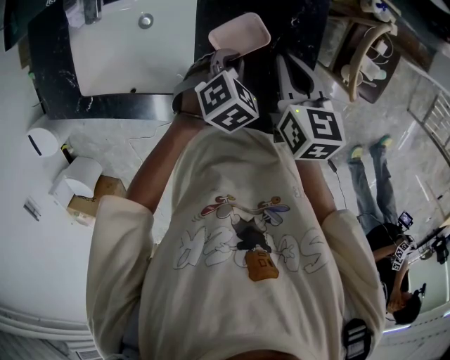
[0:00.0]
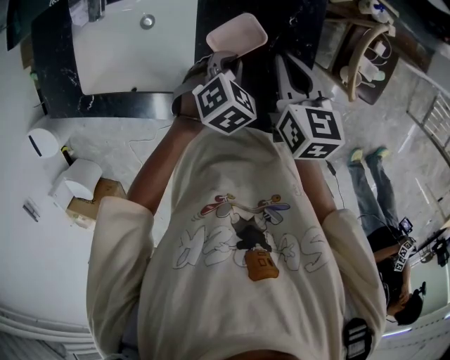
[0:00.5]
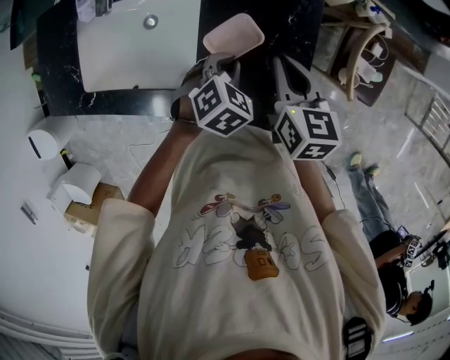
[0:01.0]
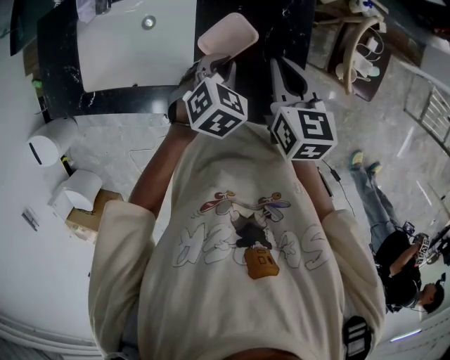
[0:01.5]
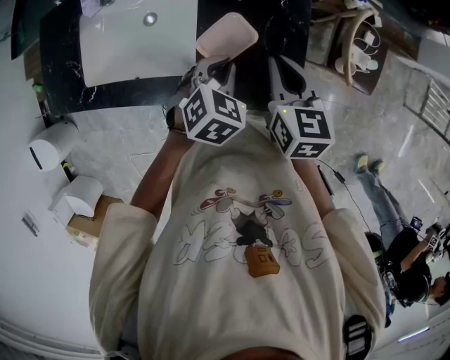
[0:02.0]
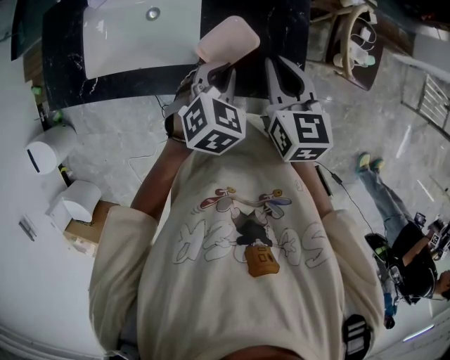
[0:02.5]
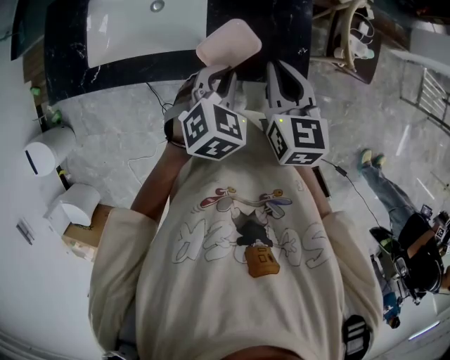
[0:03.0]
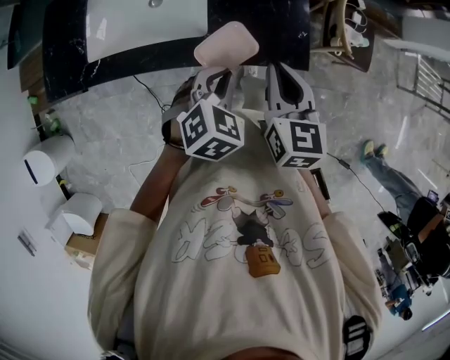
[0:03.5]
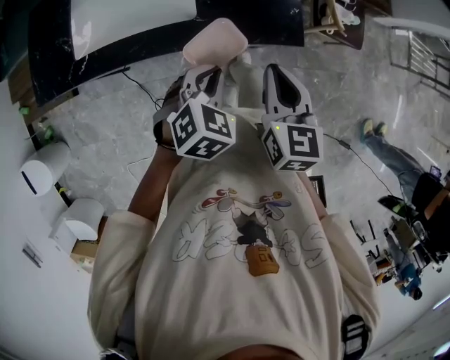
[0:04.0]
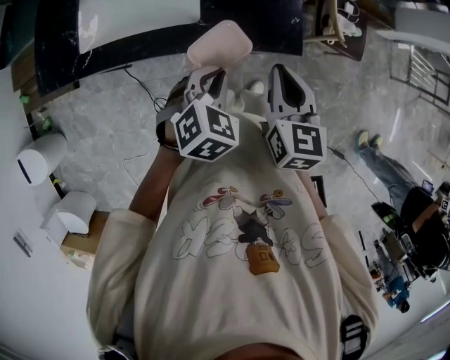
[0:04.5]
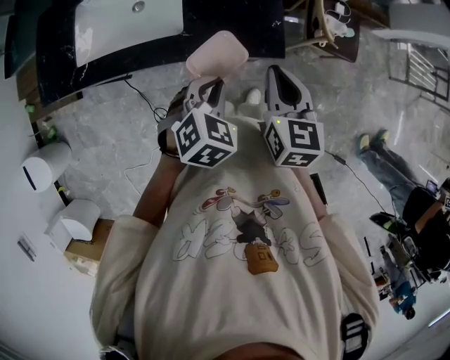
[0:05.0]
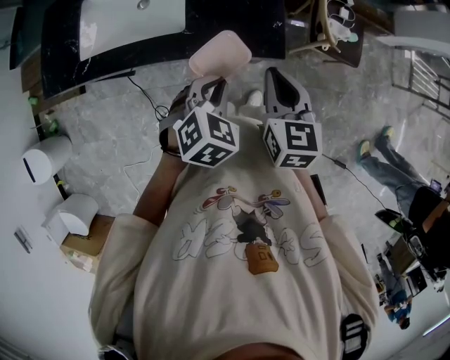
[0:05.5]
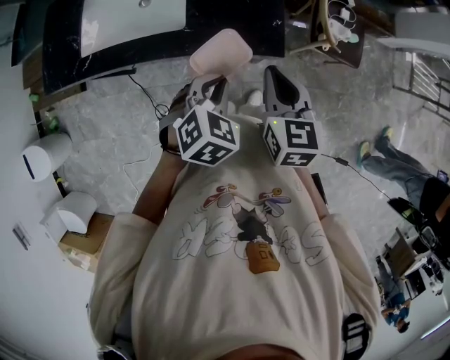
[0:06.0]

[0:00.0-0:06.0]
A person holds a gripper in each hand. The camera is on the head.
0:00.0 to 0:02.0: The right gripper shifts about 10 cm backward and upward; the left gripper heads upward and backward, covering roughly 10 cm.
0:02.0 to 0:04.0: The two grippers go some 25 cm backward.
0:04.0 to 0:06.0: Both grippers travel together to the right, about 10 cm.

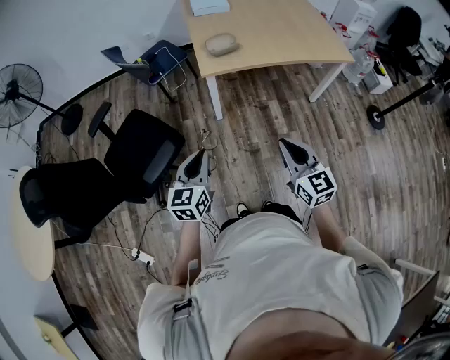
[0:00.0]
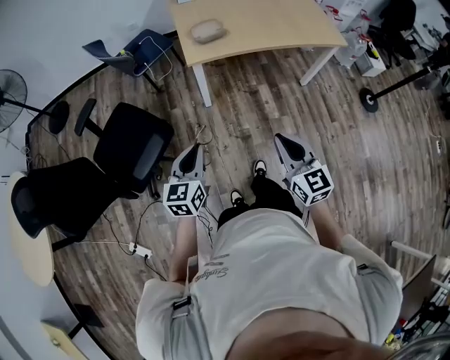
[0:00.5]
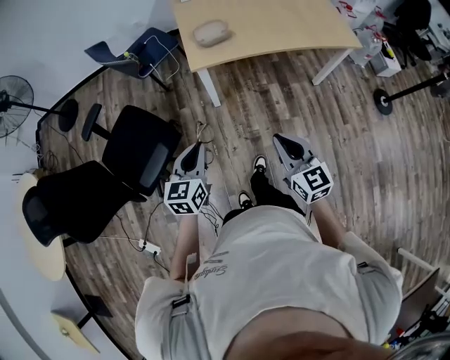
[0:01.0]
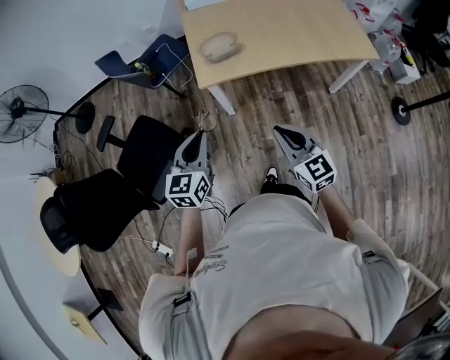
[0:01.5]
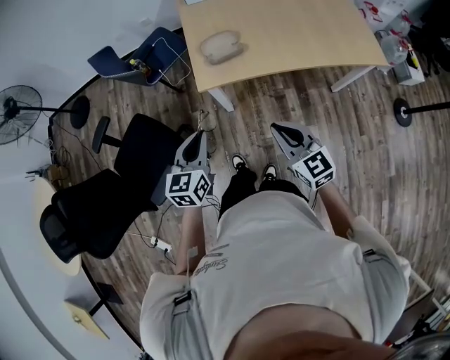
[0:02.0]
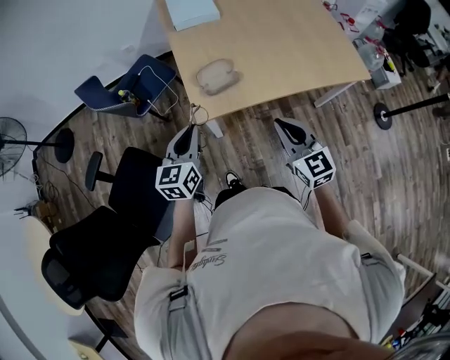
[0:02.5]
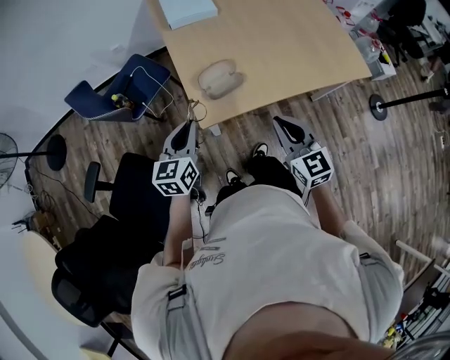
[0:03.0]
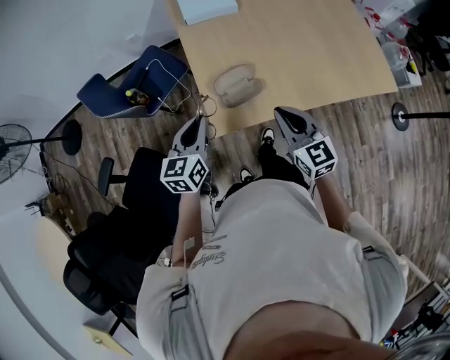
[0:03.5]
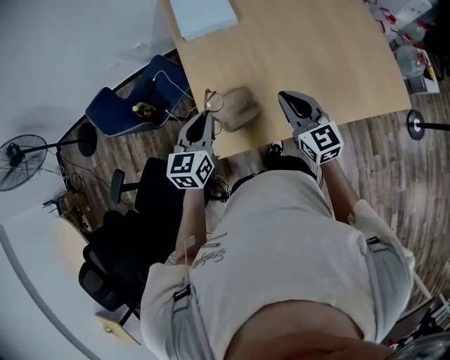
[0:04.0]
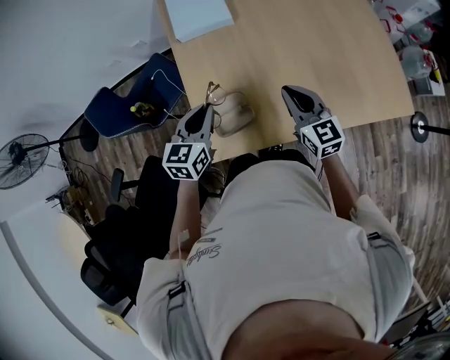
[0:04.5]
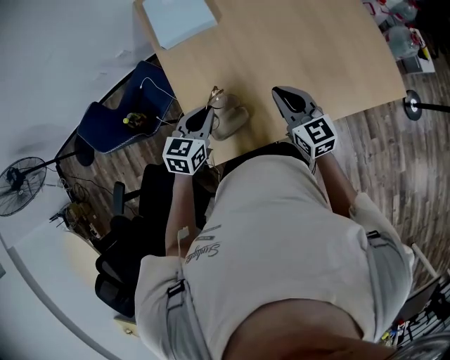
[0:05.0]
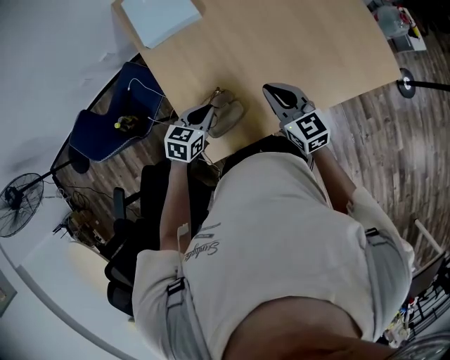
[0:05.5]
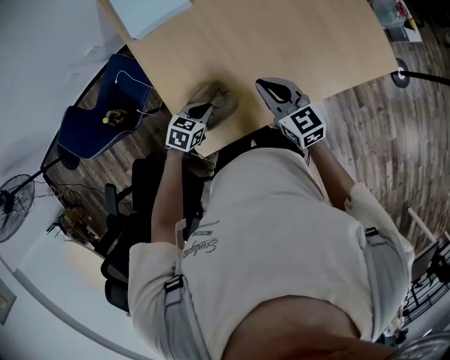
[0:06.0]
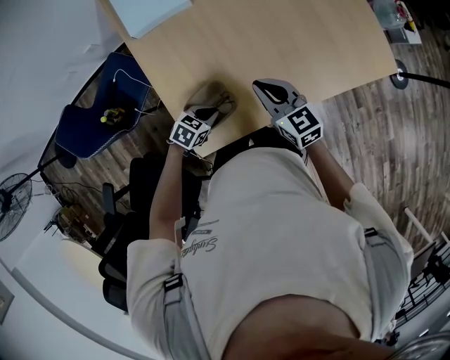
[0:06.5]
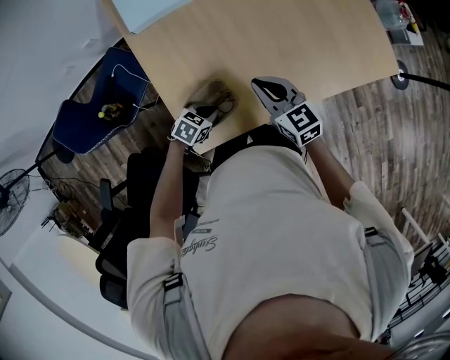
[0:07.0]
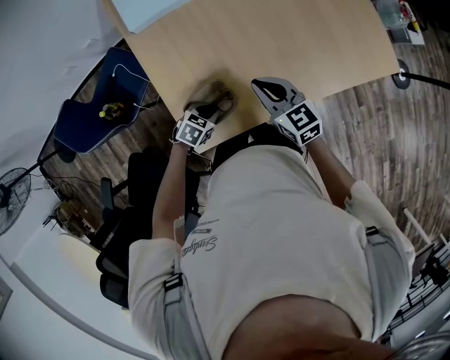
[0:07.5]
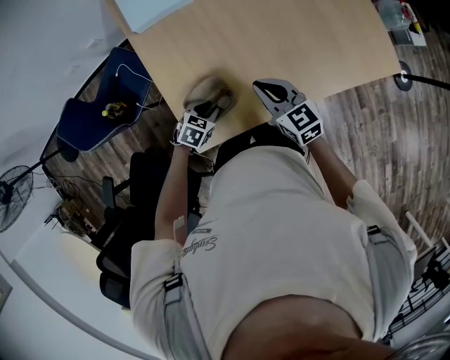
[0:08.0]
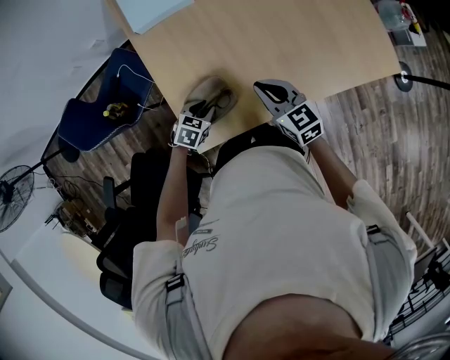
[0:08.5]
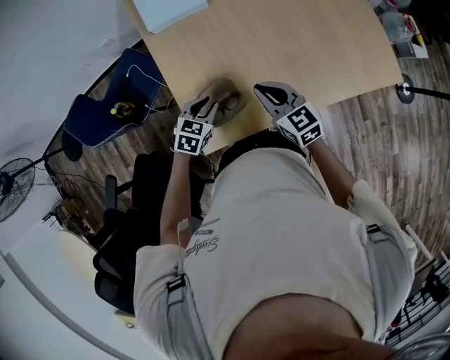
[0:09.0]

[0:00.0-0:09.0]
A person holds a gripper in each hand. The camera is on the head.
0:00.0 to 0:02.0: Both grippers move forward, some 25 cm.
0:02.0 to 0:04.5: The pair of grippers is taken forward, about 40 cm.
0:04.5 to 0:07.0: The right gripper goes some 5 cm downward, while the left gripper heads downward, covering roughly 25 cm, and angles its fingers downward, by about 30 degrees.
0:07.0 to 0:09.0: The left gripper is displaced upward by roughly 10 cm, and changes its angle by some 20 degrees.

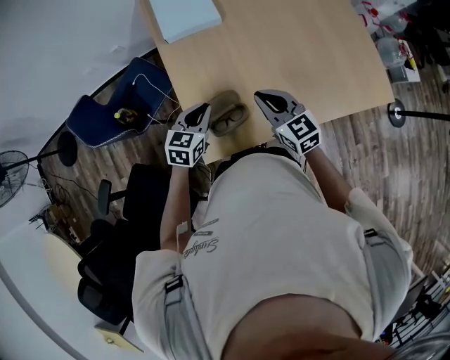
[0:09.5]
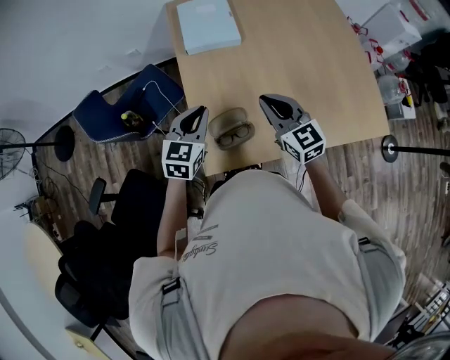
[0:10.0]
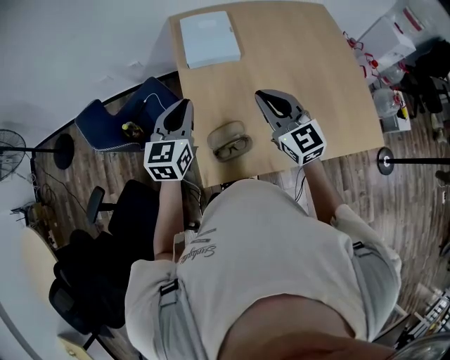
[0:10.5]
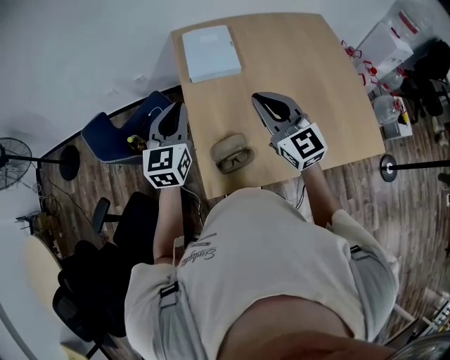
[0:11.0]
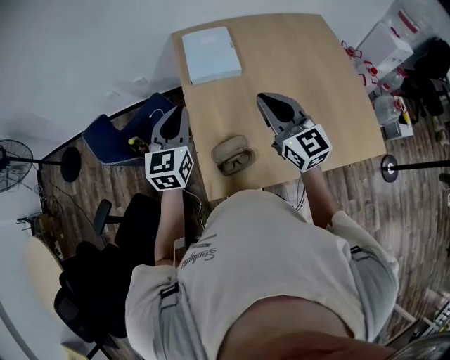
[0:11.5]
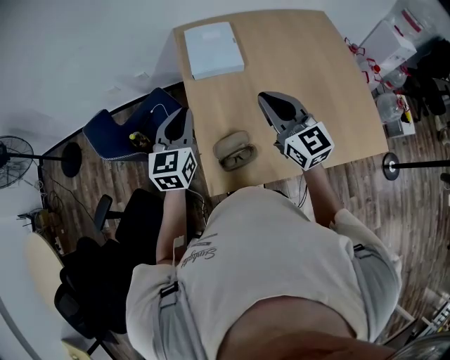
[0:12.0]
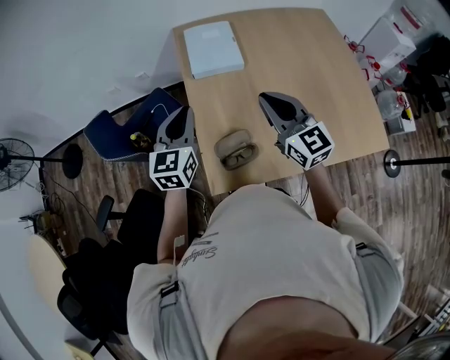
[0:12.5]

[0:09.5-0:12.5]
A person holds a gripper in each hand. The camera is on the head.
0:09.5 to 0:11.0: The grippers both shift upward by about 20 cm. The left gripper swivels about 30 degrees; the right gripper turns by roughly 20 degrees.
0:11.0 to 0:12.5: The grippers stay close to where they were, moving slightly.

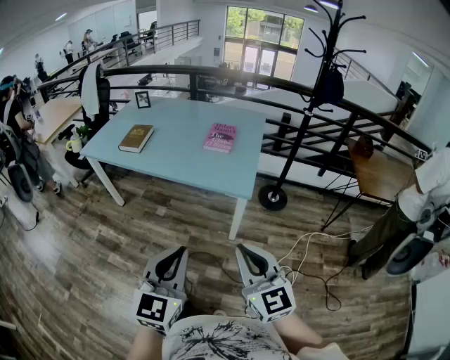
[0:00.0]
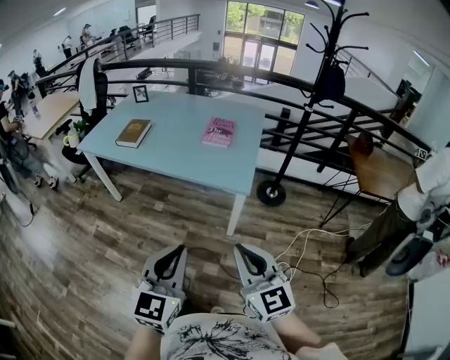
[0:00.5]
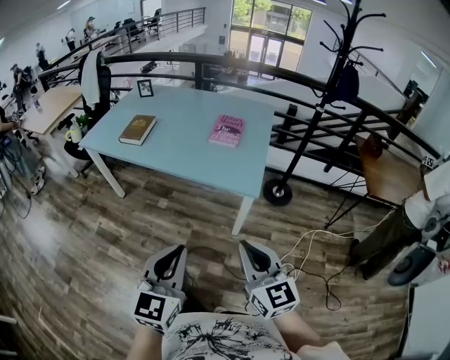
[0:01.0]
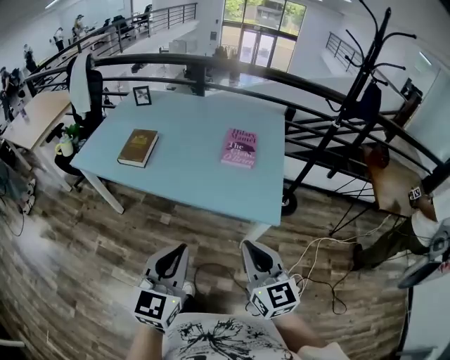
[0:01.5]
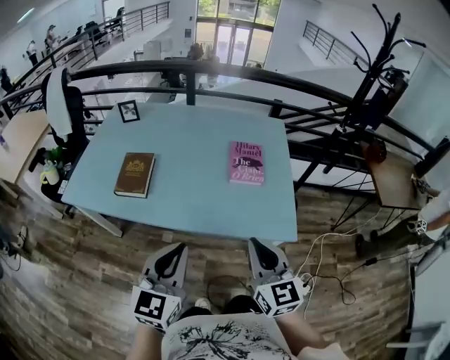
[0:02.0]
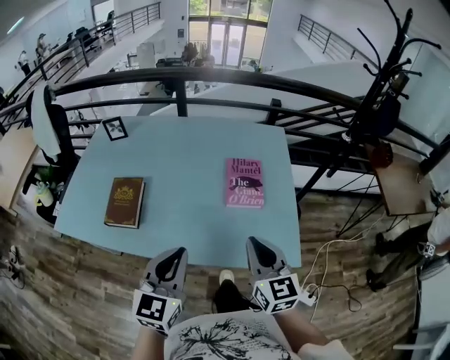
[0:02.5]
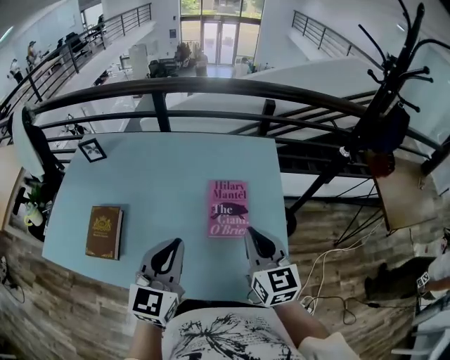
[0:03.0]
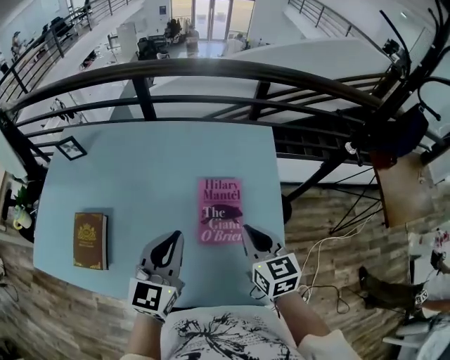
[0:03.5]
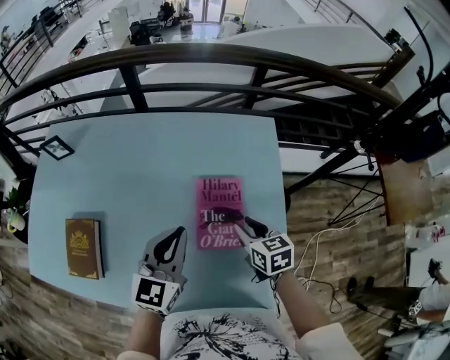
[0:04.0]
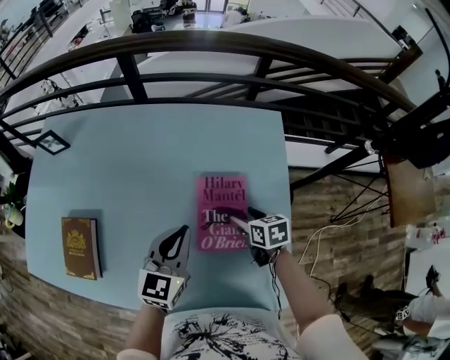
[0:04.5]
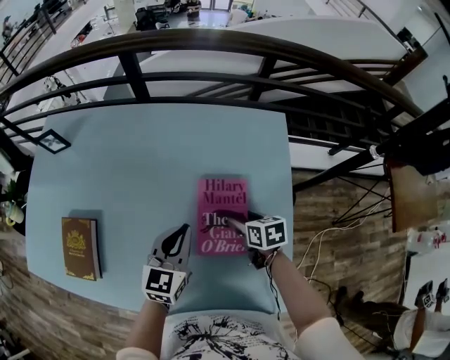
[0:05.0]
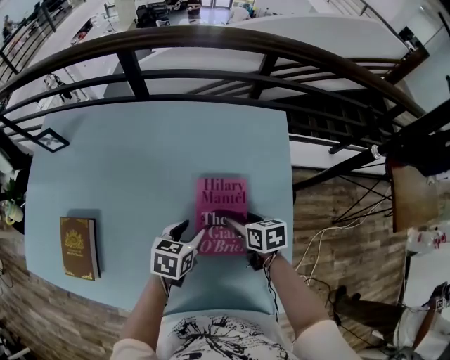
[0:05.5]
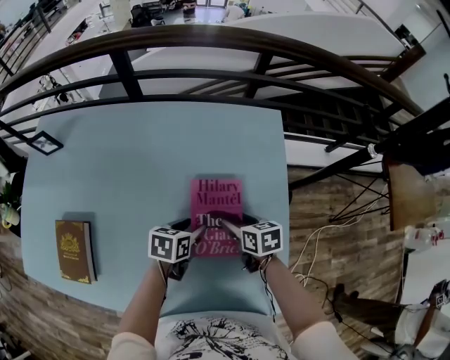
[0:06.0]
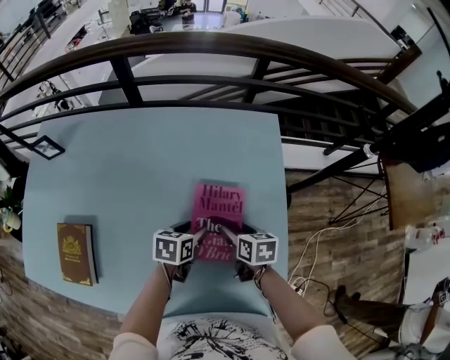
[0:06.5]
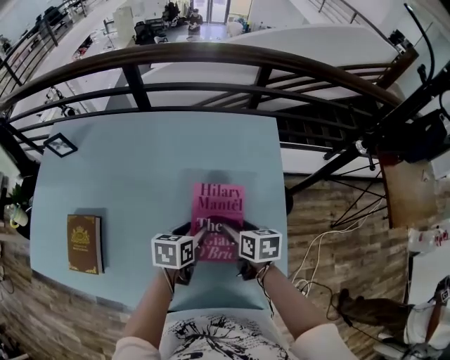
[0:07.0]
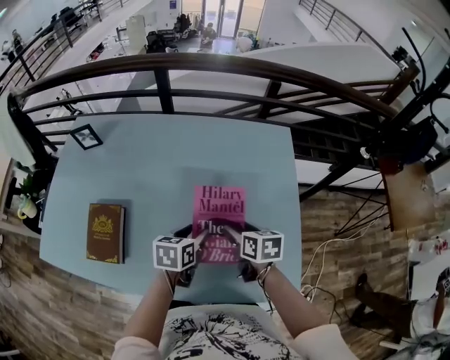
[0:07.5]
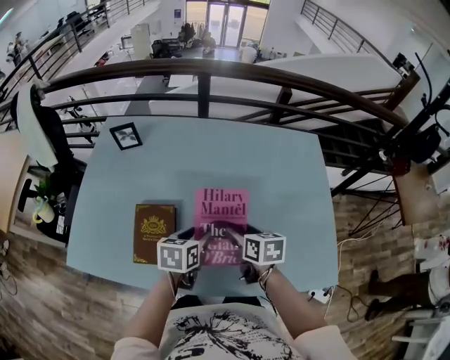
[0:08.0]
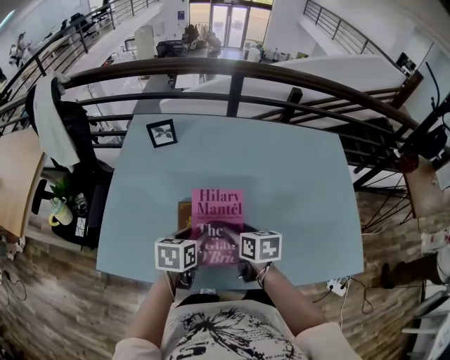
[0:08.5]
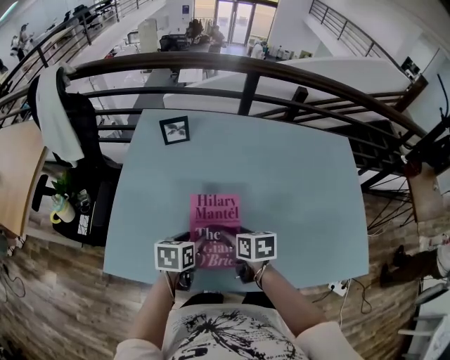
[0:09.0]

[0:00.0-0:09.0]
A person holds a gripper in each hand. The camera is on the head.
0:00.0 to 0:02.0: The two grippers travel together, forward and to the left, about 40 cm.
0:02.0 to 0:04.5: Both grippers are carried forward, some 50 cm. The right gripper goes roughly 30 cm downward, tips its fingers downward by roughly 40 degrees, and opens.
0:04.5 to 0:07.0: The left gripper travels downward by about 10 cm, rotates roughly 40 degrees, and opens. The right gripper changes place by roughly 5 cm.
0:07.0 to 0:09.0: Both grippers are carried to the left, some 60 cm.
